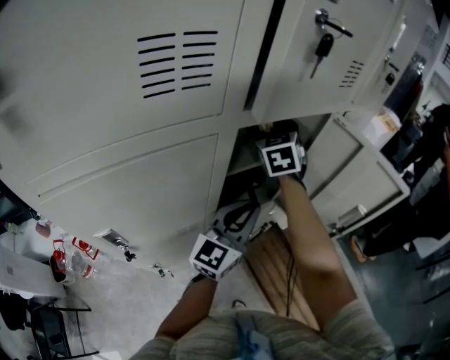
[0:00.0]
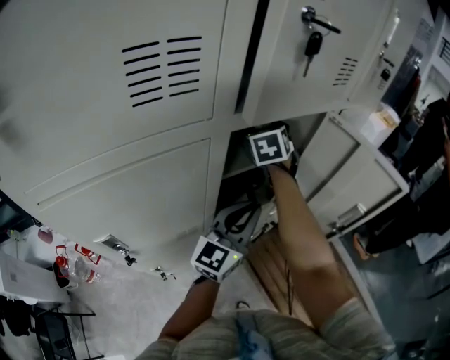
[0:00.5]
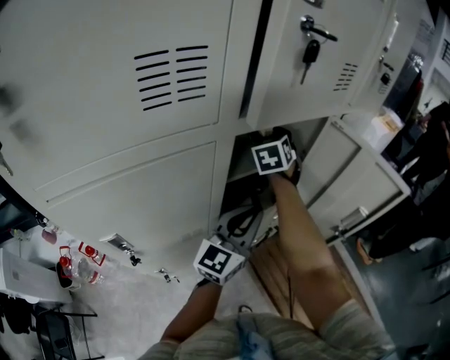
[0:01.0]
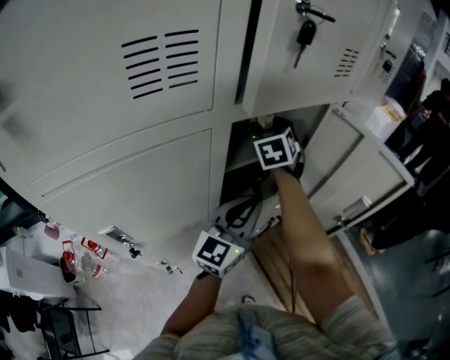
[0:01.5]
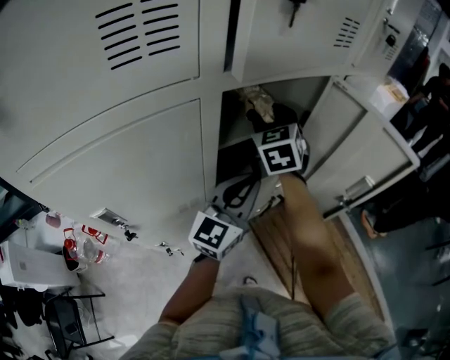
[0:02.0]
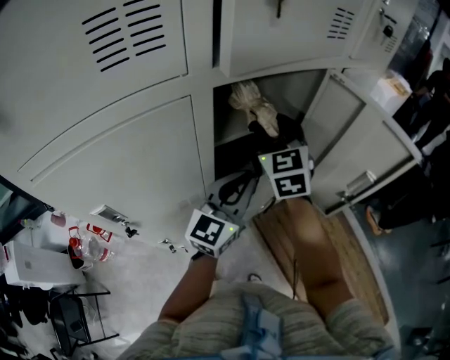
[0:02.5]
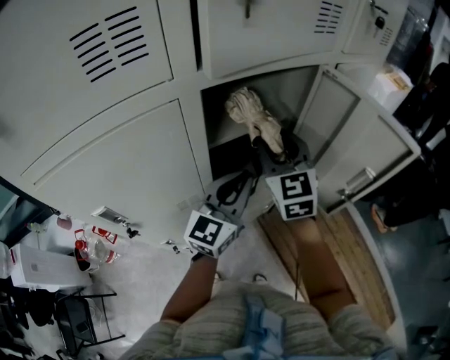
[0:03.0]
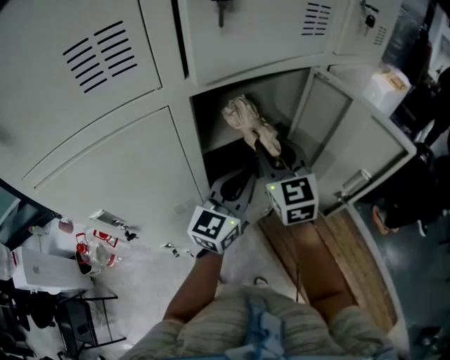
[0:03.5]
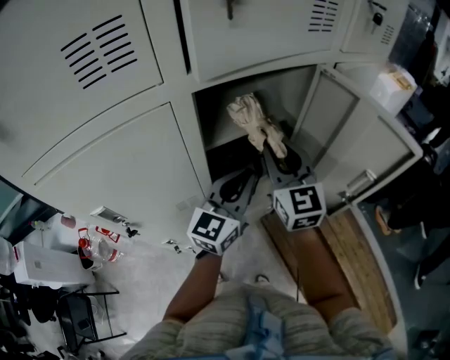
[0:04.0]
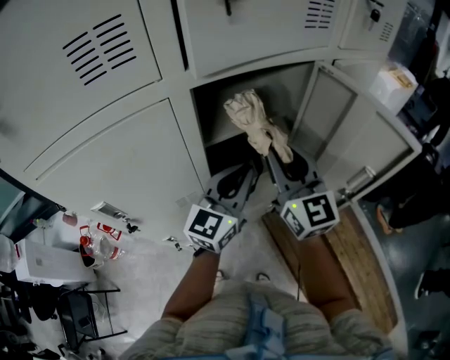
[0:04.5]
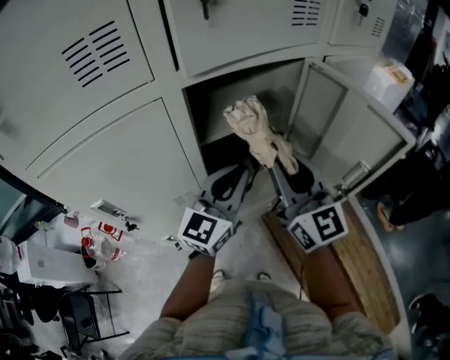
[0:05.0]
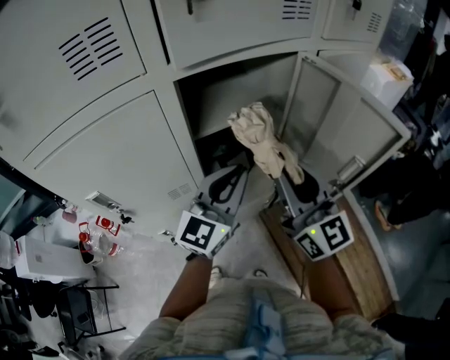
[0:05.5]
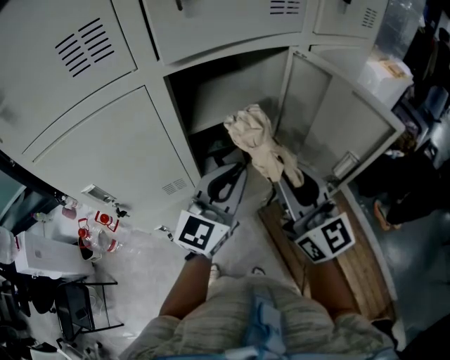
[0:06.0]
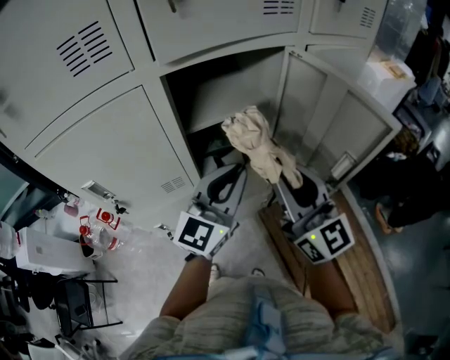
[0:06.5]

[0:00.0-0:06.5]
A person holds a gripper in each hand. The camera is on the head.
0:00.0 to 0:02.0: The right gripper moves roughly 5 cm.
0:02.0 to 0:04.5: The right gripper moves backward and to the right, about 15 cm, and changes its angle by roughly 40 degrees.
0:04.5 to 0:06.5: The right gripper is displaced backward and to the right by roughly 10 cm; the left gripper travels backward by about 5 cm.

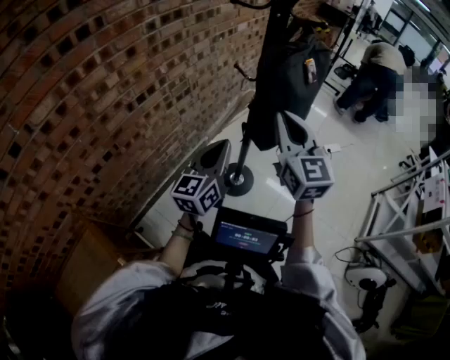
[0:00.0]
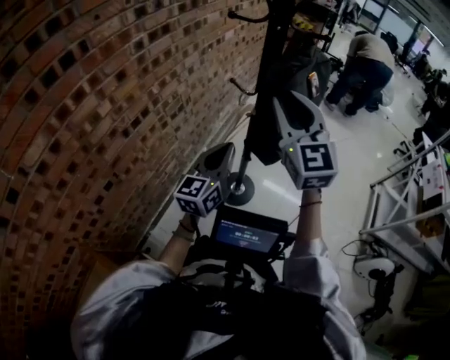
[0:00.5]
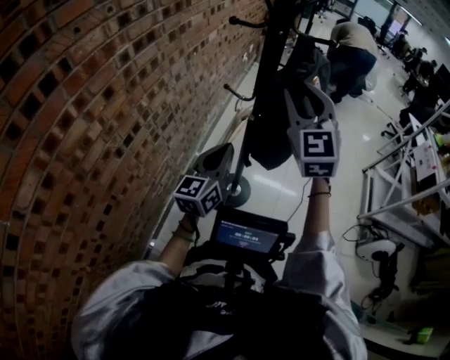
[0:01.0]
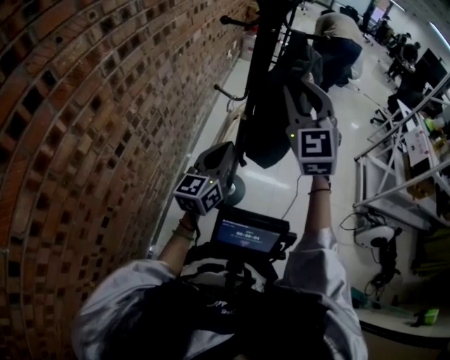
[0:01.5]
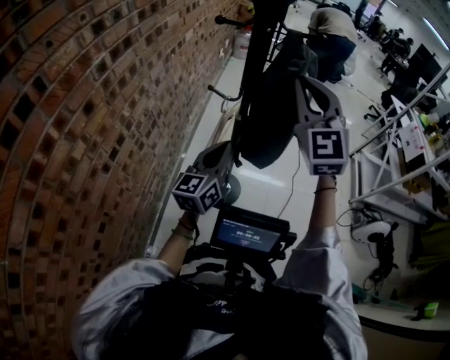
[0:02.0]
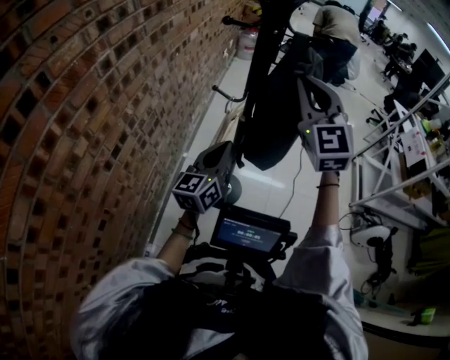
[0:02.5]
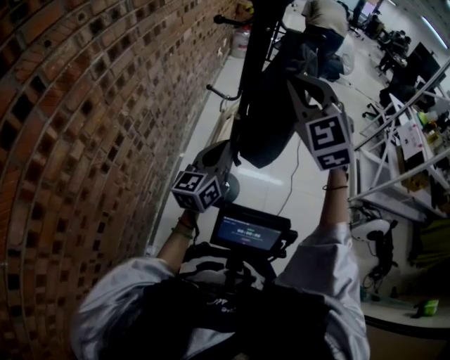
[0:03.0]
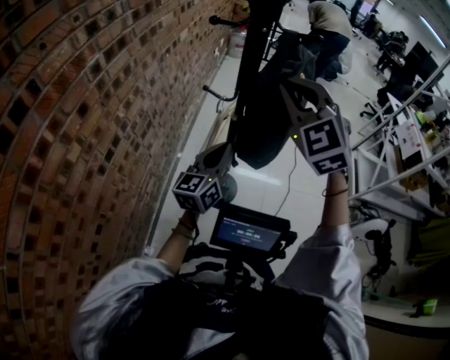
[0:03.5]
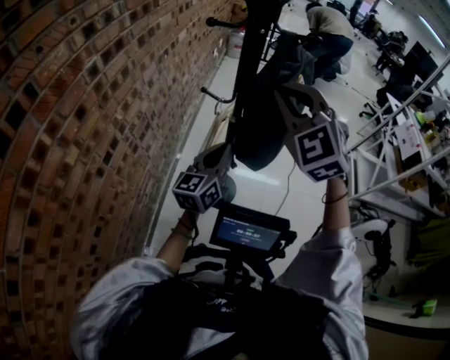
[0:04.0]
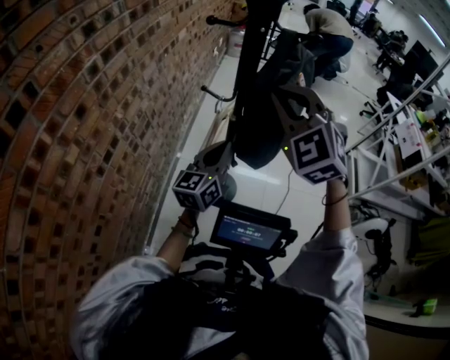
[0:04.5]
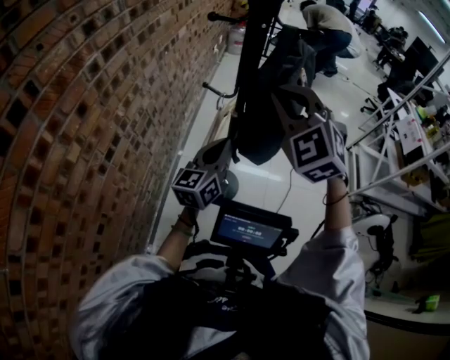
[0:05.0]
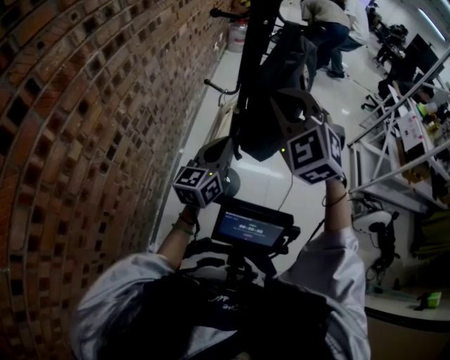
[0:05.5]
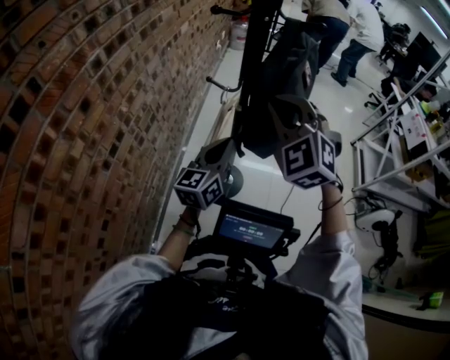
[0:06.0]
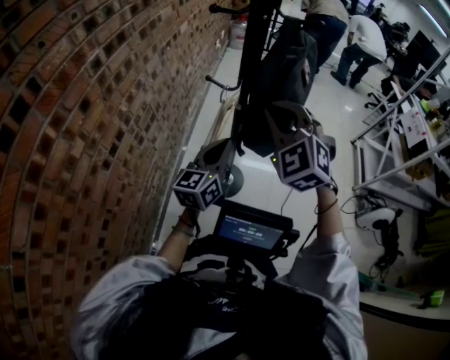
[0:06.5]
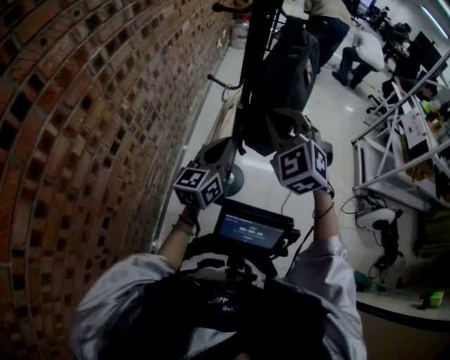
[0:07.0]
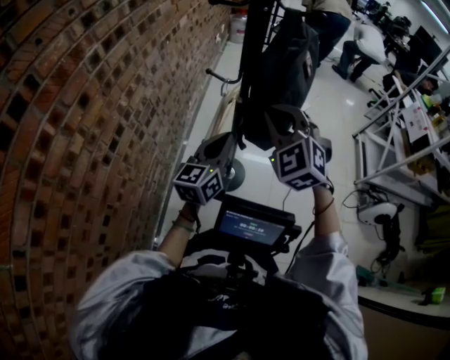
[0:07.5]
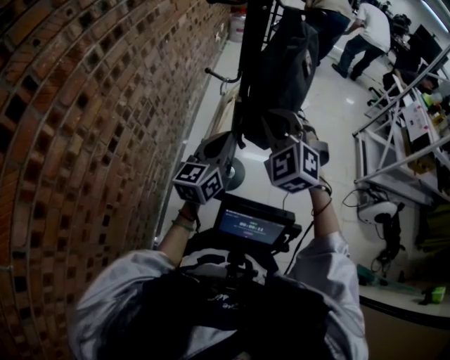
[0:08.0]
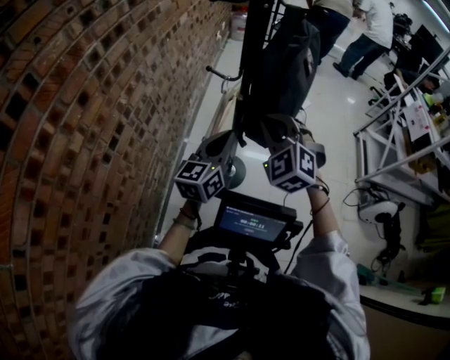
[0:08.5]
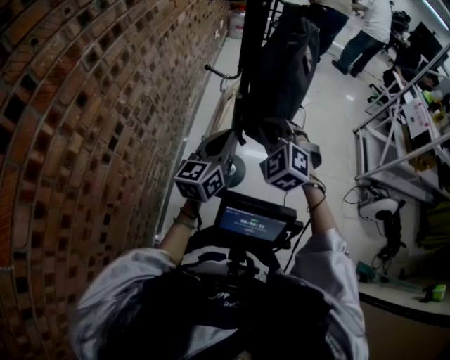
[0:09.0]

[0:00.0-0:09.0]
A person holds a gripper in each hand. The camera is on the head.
0:00.0 to 0:02.0: The right gripper shifts about 15 cm forward and upward, rotates roughly 40 degrees, and opens, then closes once more. The left gripper heads forward, covering some 10 cm, and swivels roughly 20 degrees.
0:02.0 to 0:04.5: The right gripper shifts by about 5 cm, and swivels about 20 degrees.
0:04.5 to 0:07.0: The right gripper heads downward, covering approximately 10 cm.
0:07.0 to 0:09.0: The right gripper is displaced downward by approximately 10 cm.

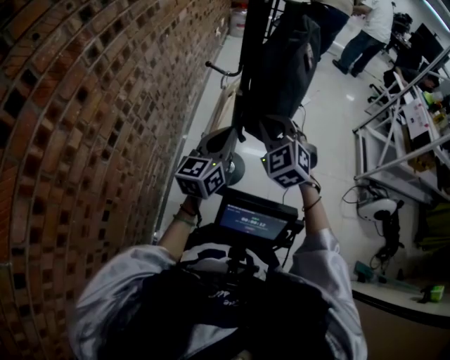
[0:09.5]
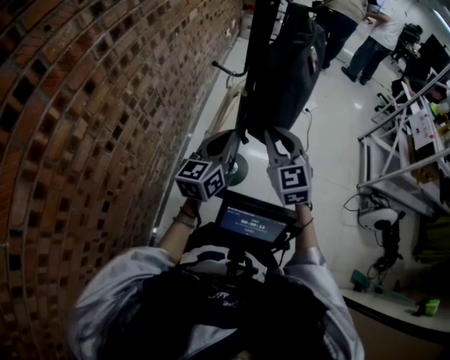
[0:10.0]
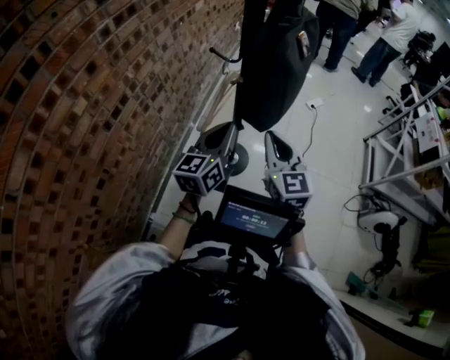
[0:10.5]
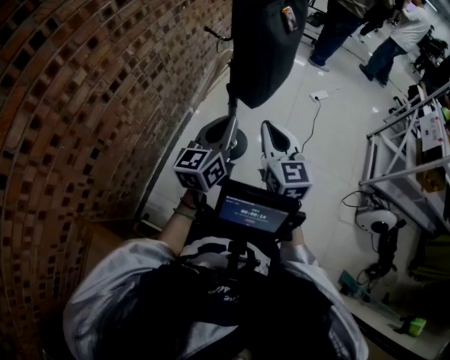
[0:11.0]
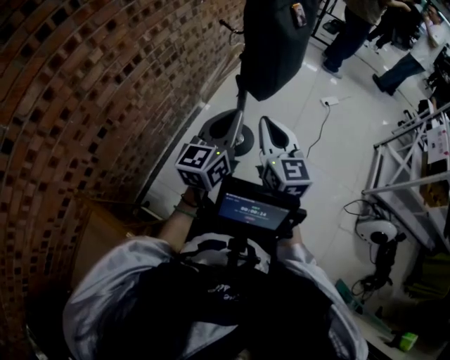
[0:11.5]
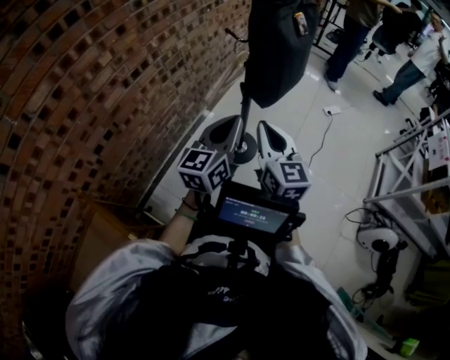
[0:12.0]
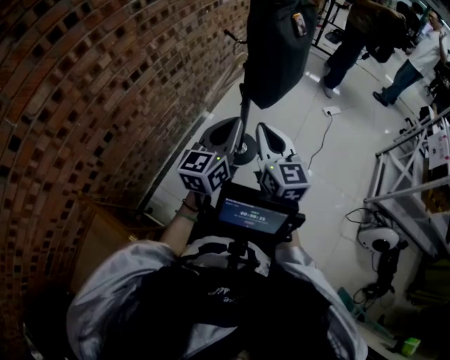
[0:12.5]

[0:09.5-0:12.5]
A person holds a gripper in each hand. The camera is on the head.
0:09.5 to 0:11.0: Both grippers travel together backward and to the right, about 15 cm. The right gripper changes its angle by approximately 40 degrees.
0:11.0 to 0:12.5: The grippers stay close to where they were, moving slightly.

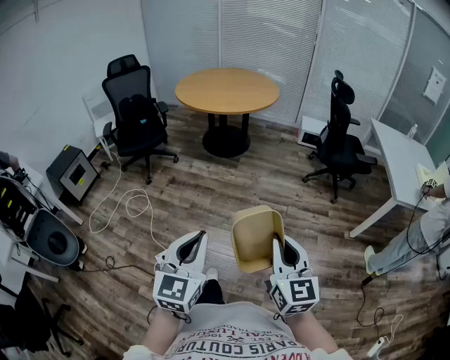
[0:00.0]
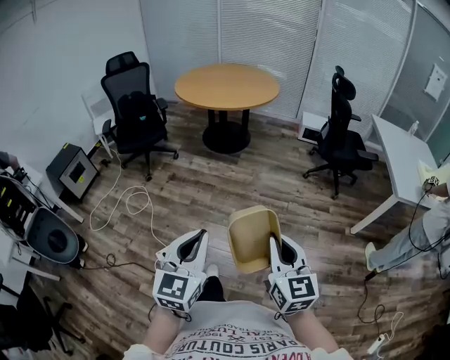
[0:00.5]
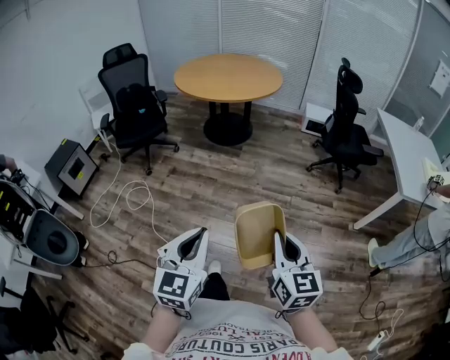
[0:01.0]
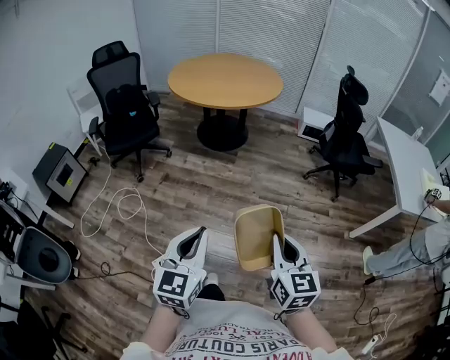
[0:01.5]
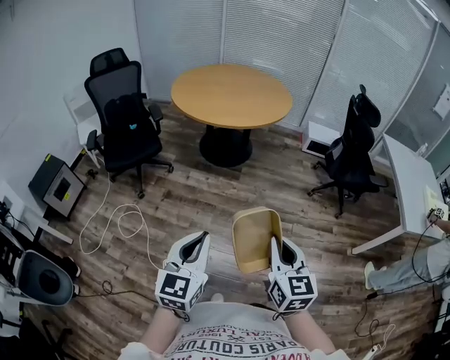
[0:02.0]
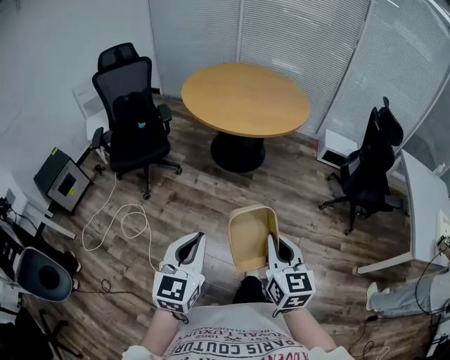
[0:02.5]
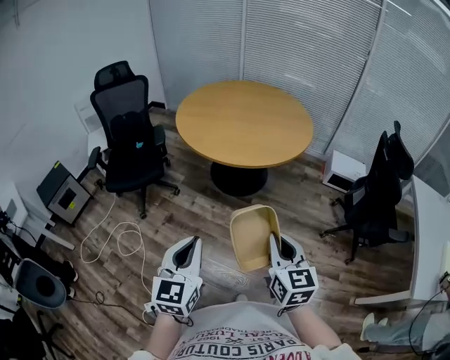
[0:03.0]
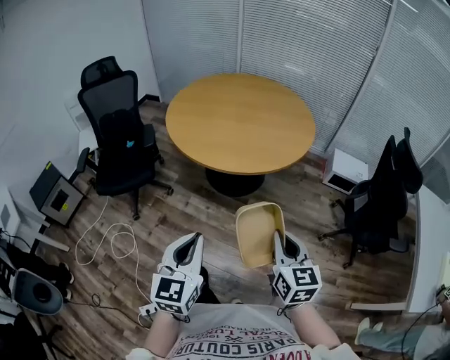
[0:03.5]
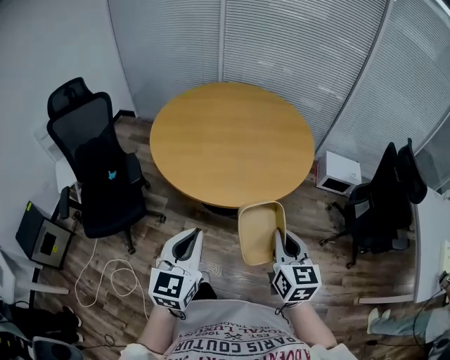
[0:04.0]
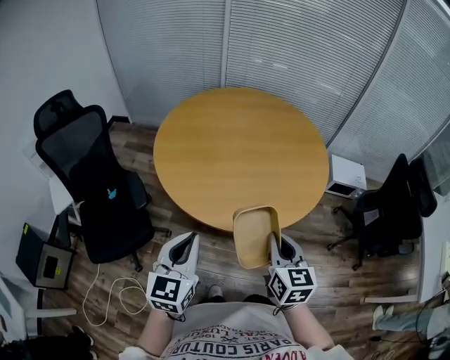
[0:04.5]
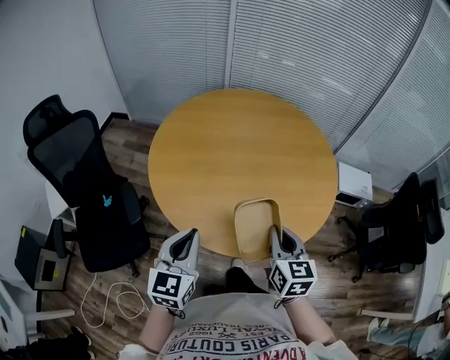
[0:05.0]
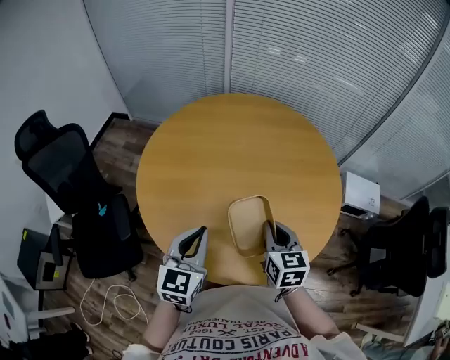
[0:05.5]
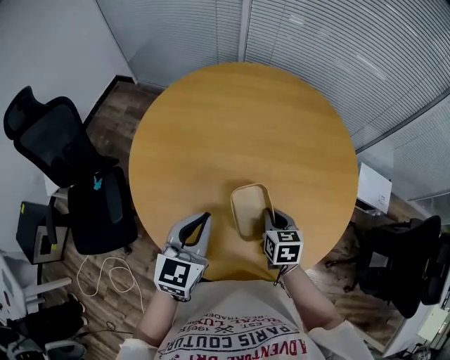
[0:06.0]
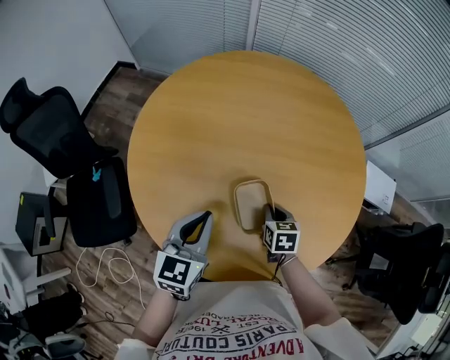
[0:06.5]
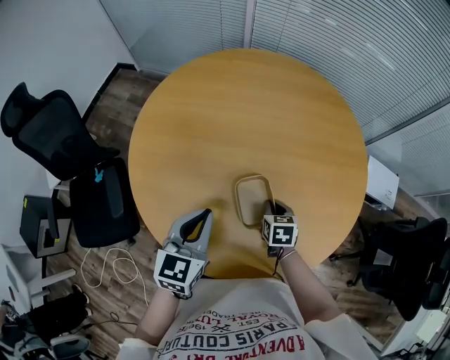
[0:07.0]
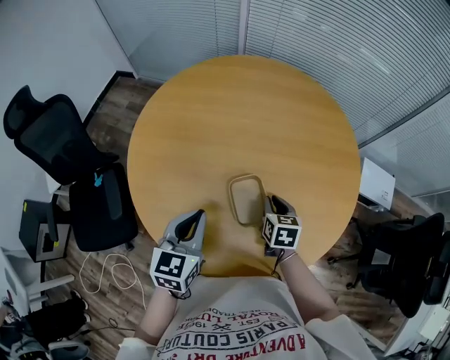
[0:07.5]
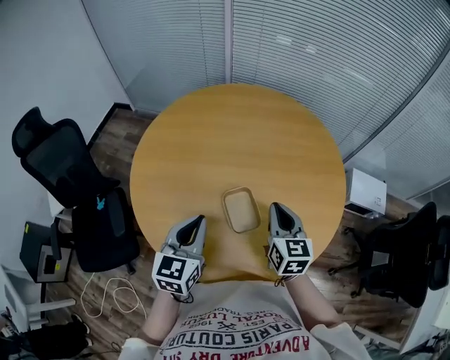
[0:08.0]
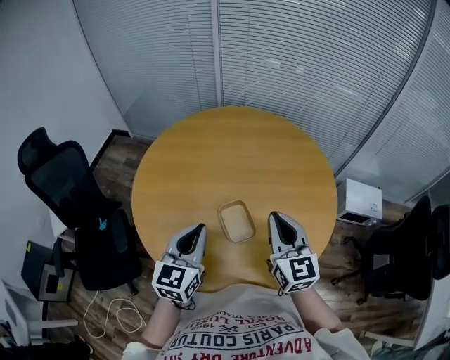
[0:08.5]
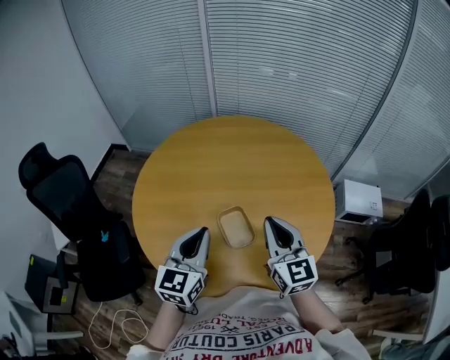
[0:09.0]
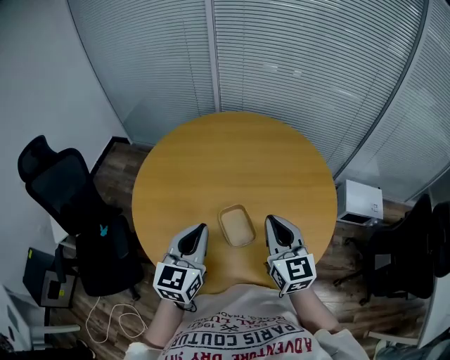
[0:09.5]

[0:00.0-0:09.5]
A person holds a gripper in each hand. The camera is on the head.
0:00.0 to 0:02.0: Both grippers move forward and to the left, approximately 30 cm.
0:02.0 to 0:04.0: The two grippers travel together, forward, some 60 cm.
0:04.0 to 0:05.5: The grippers both shift forward by roughly 40 cm.
0:05.5 to 0:07.5: The left gripper moves downward and forward, about 10 cm. The right gripper travels downward and forward by some 20 cm.
0:07.5 to 0:09.5: The left gripper goes some 10 cm upward. The right gripper is displaced upward by roughly 25 cm, and tilts its fingers roughly 40 degrees upward.
